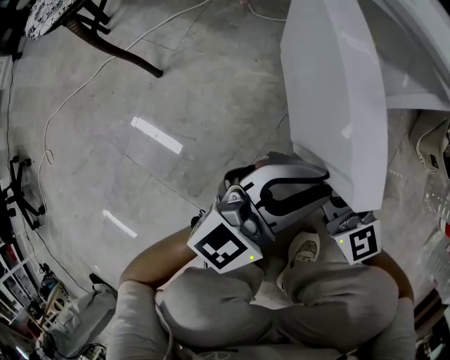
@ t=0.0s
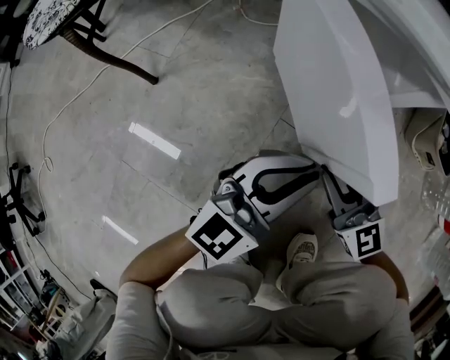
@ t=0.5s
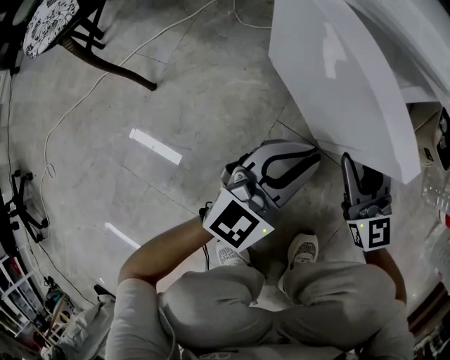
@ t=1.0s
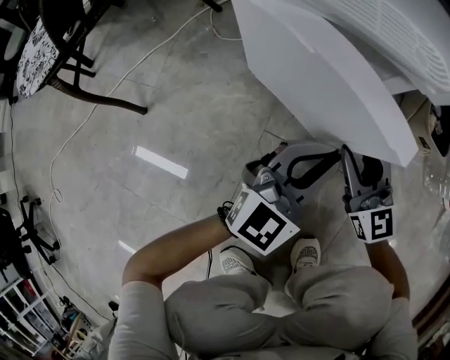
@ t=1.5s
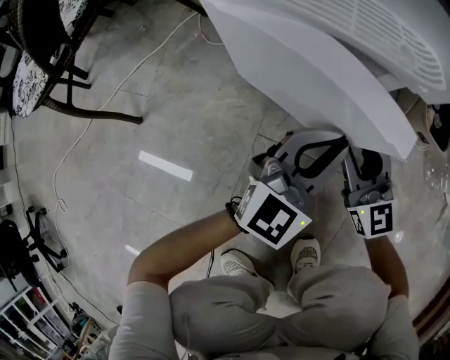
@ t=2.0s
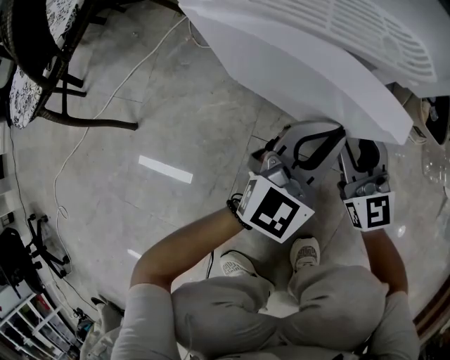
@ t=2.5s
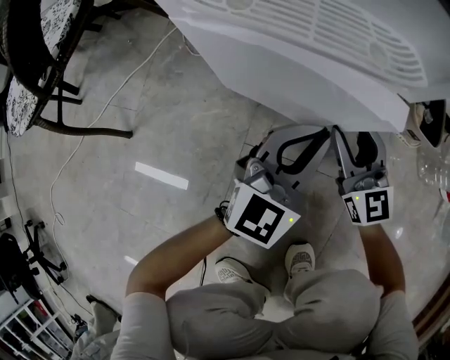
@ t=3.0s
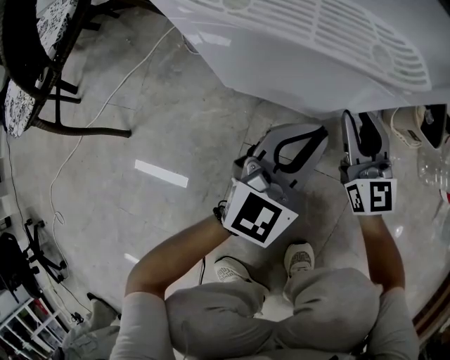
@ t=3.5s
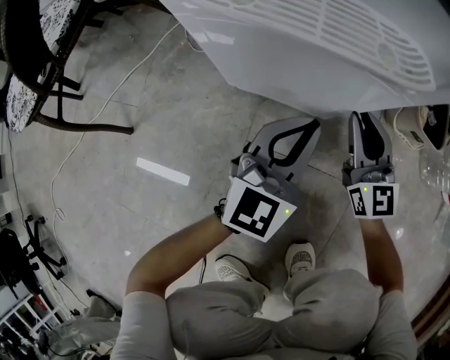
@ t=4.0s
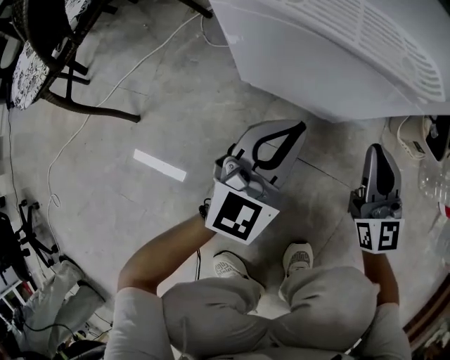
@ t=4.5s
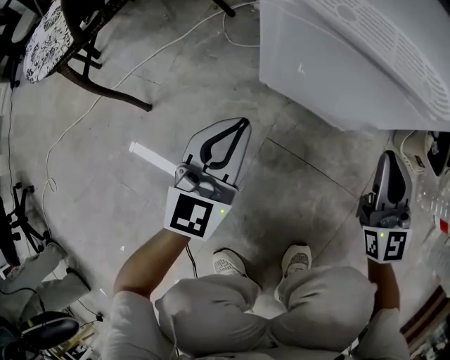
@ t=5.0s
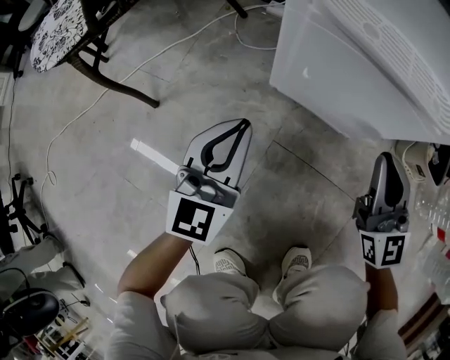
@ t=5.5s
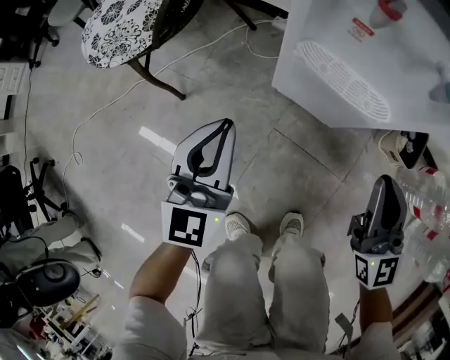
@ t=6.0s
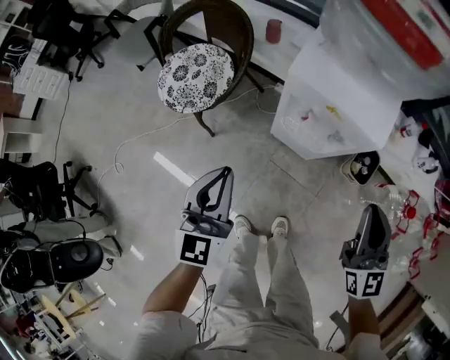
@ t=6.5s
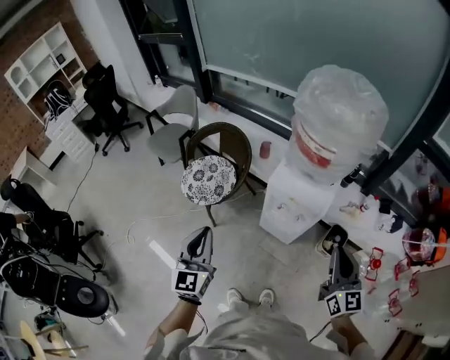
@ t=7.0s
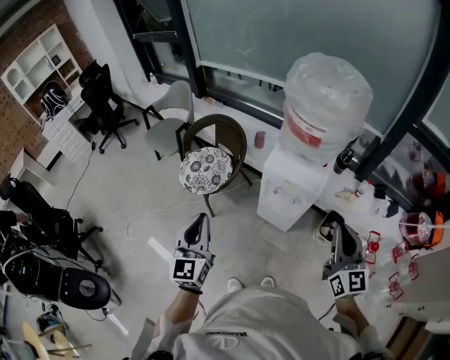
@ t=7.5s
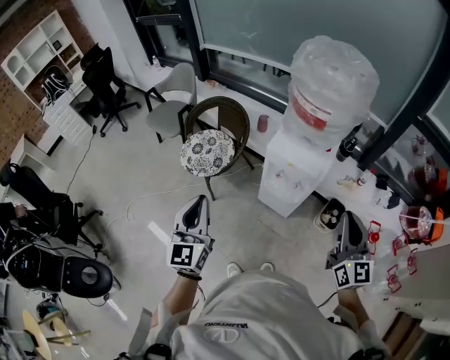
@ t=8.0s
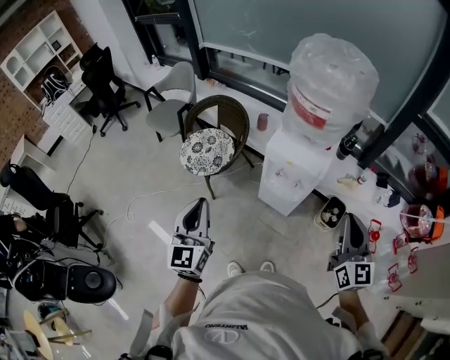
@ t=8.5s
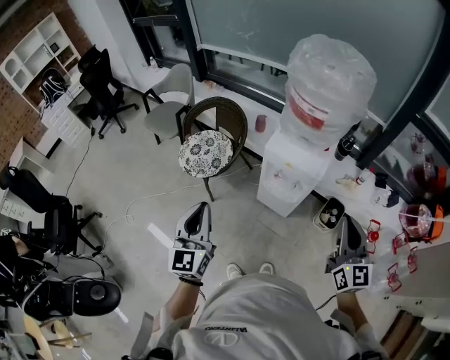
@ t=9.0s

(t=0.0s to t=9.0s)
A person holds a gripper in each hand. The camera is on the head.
t=0.0s - t=2.0s: The left gripper shifts some 15 cm forward and to the right. The right gripper heads to the right and forward, covering approximately 15 cm, and swivels roughly 20 degrees.
t=2.0s - t=4.5s: The left gripper shifts about 5 cm to the left; the right gripper shifts by roughly 5 cm, and closes.
t=4.5s - t=7.0s: The grippers both shift upward by roughly 80 cm. The left gripper rotates roughly 40 degrees.
t=7.0s - t=9.0s: The left gripper travels backward by about 5 cm, while the right gripper moves roughly 5 cm.

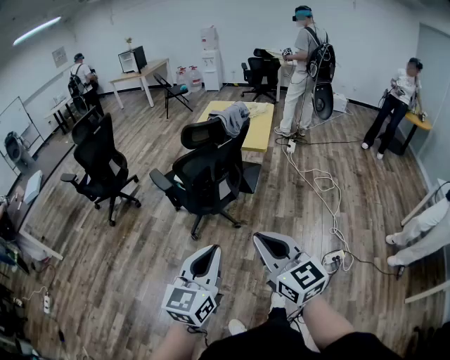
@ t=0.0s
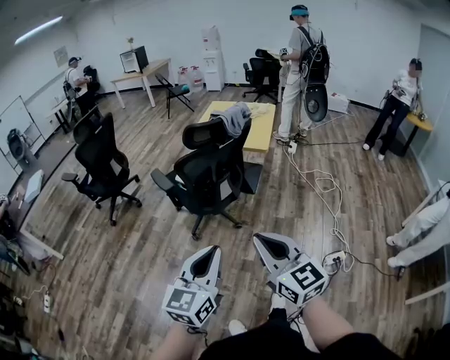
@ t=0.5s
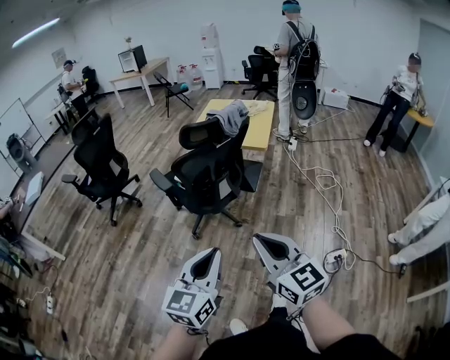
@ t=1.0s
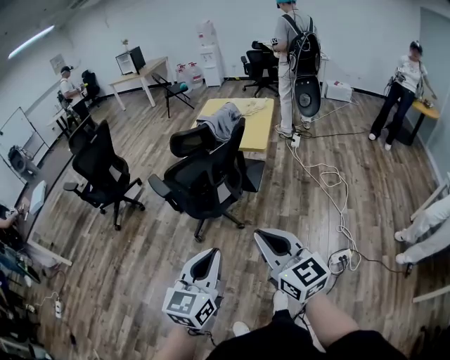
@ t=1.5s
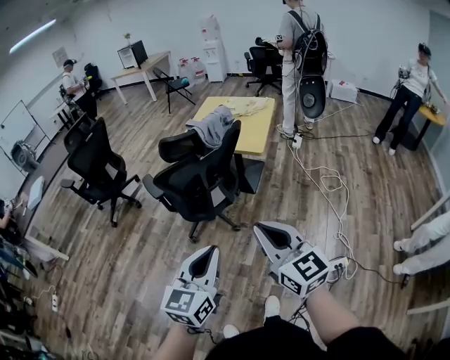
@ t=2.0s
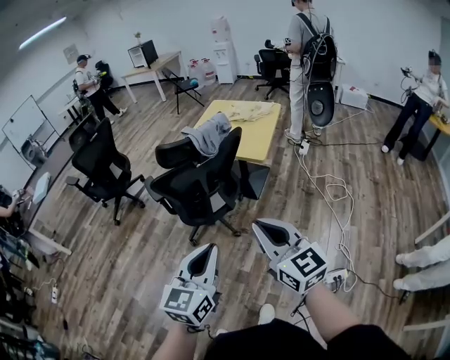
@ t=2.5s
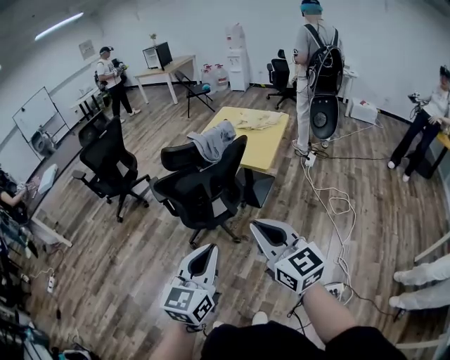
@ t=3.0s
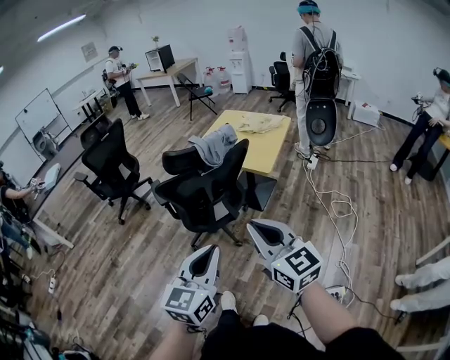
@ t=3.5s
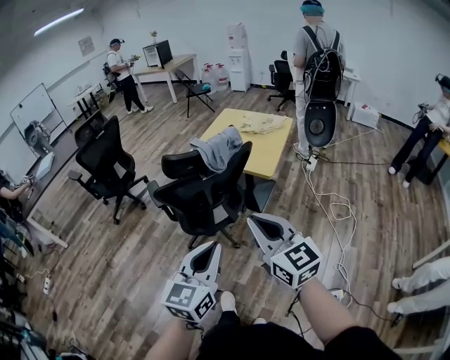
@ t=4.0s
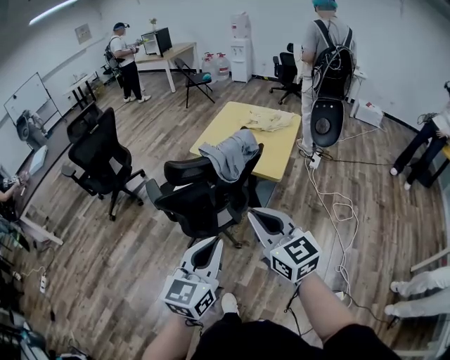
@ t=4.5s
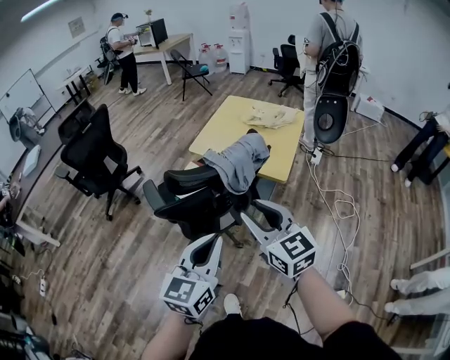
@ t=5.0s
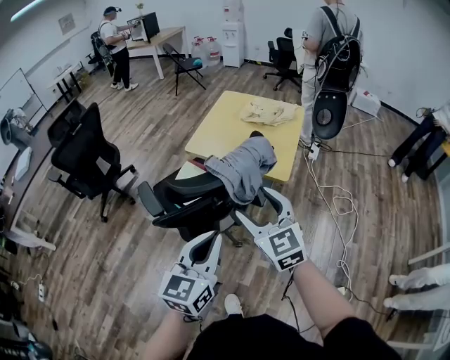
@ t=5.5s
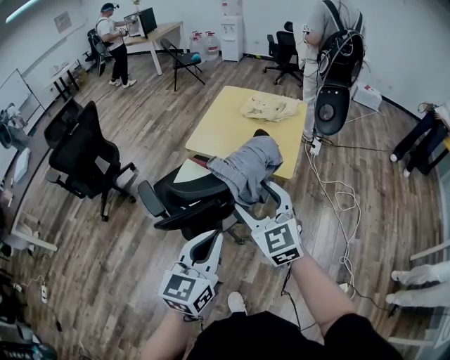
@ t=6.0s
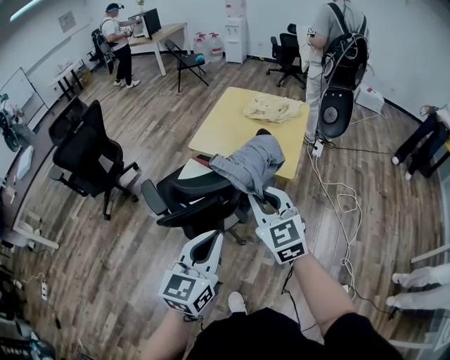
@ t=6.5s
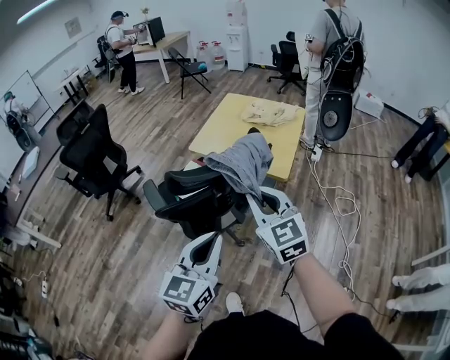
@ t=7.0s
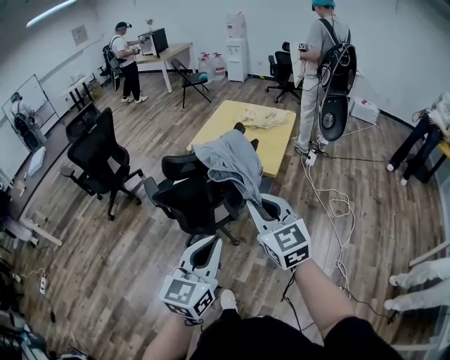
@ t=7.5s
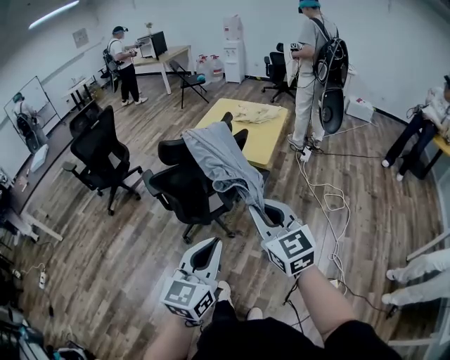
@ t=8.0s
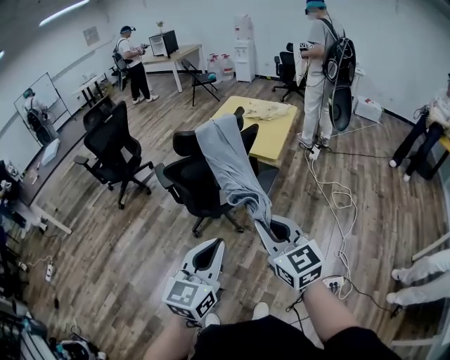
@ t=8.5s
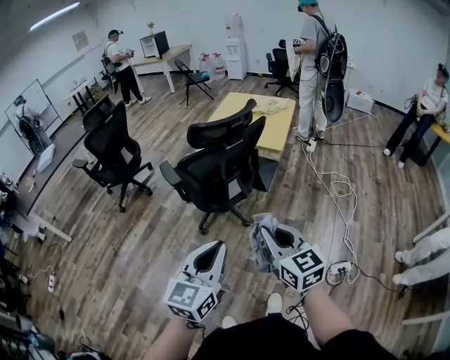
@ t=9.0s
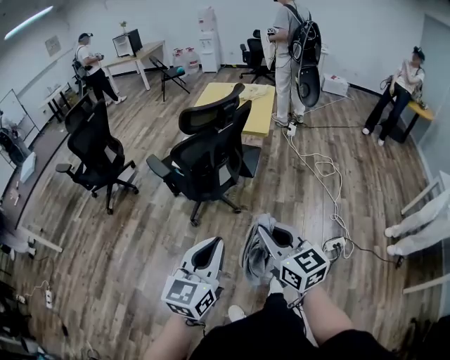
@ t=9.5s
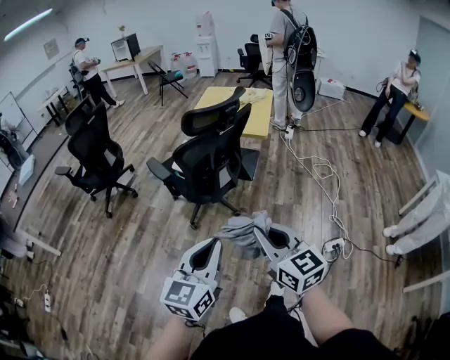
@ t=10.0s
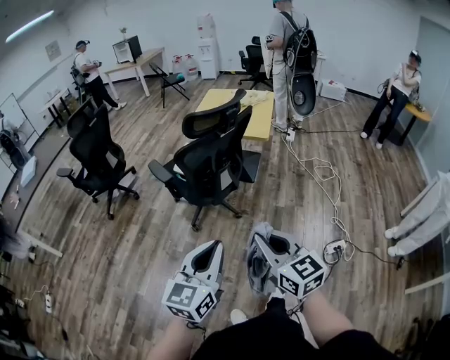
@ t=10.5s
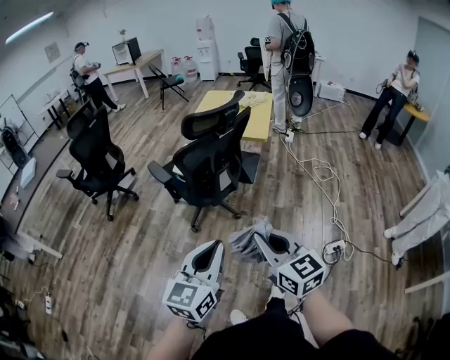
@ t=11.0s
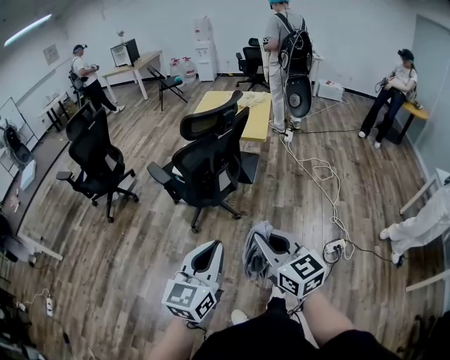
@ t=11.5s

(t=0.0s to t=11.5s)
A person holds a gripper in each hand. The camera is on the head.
t=0.0s - t=2.0s: The right gripper moves forward and to the right, about 20 cm; the left gripper is displaced to the right and forward by some 15 cm.
t=2.0s - t=4.0s: The left gripper heads forward and to the right, covering some 10 cm; the right gripper is displaced forward by approximately 10 cm.
t=4.0s - t=6.0s: The two grippers go some 25 cm forward. The right gripper rotates approximately 20 degrees, and opens its fingers.
t=6.0s - t=7.5s: Both grippers travel together backward and to the right, approximately 20 cm. The right gripper closes its fingers.
t=7.5s - t=9.5s: The right gripper travels backward by roughly 30 cm. The left gripper is displaced backward and to the left by about 30 cm.
t=9.5s - t=11.5s: The grippers move only a little.

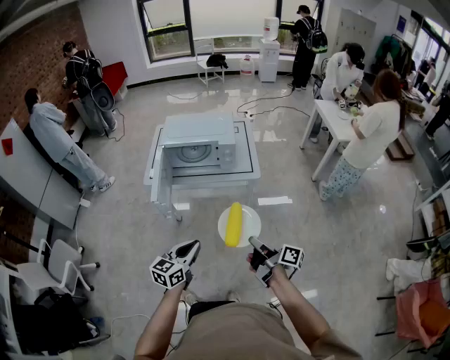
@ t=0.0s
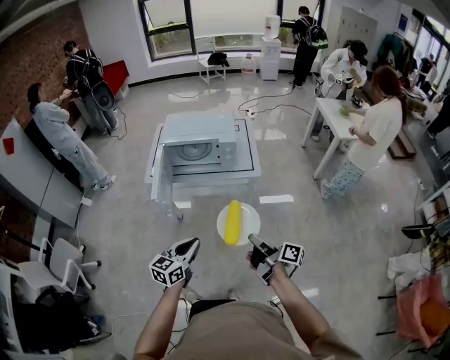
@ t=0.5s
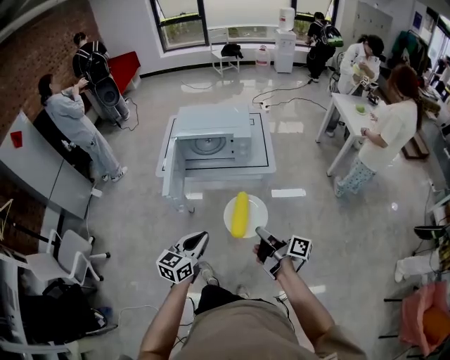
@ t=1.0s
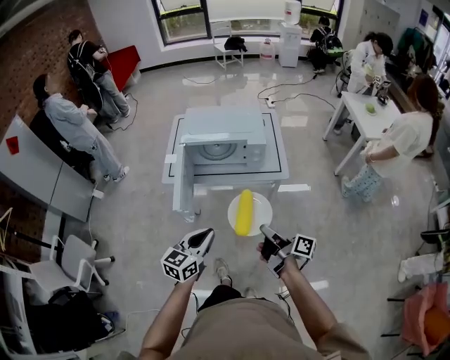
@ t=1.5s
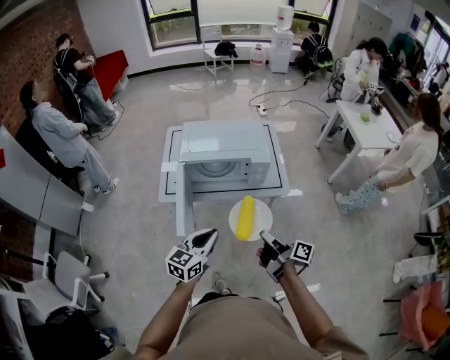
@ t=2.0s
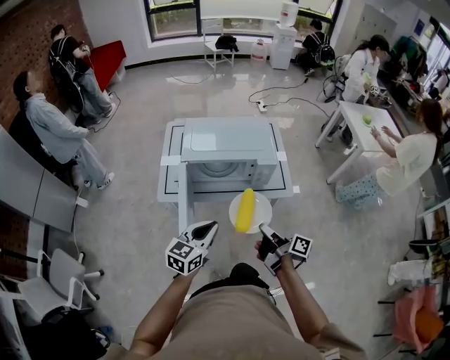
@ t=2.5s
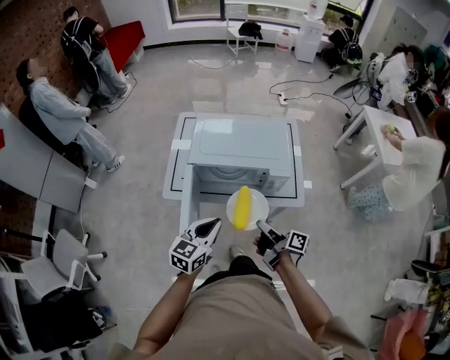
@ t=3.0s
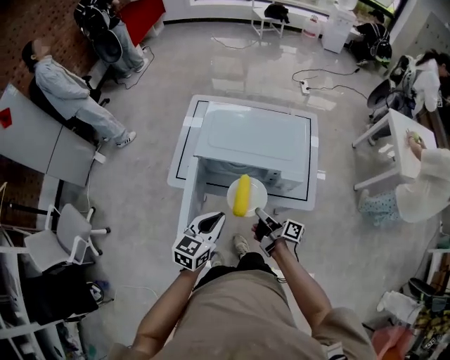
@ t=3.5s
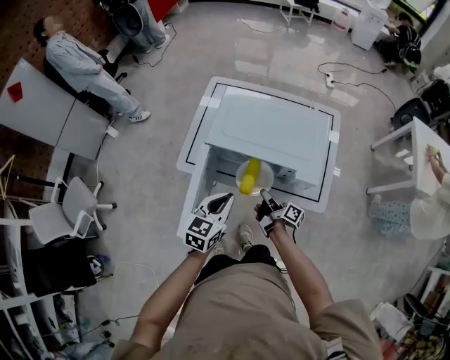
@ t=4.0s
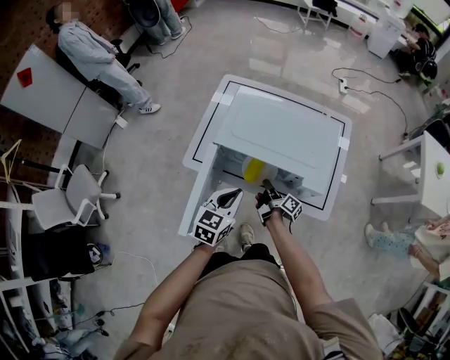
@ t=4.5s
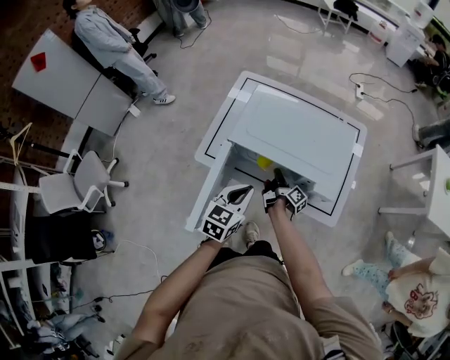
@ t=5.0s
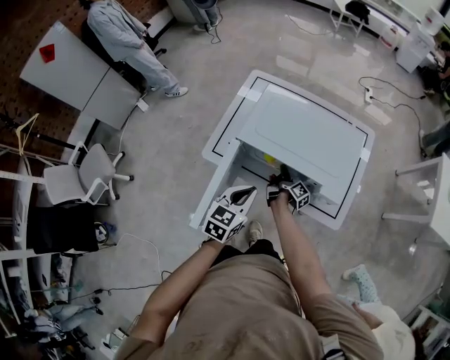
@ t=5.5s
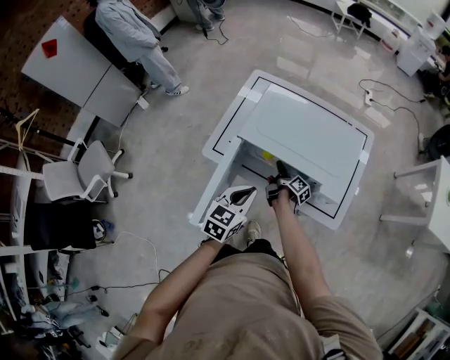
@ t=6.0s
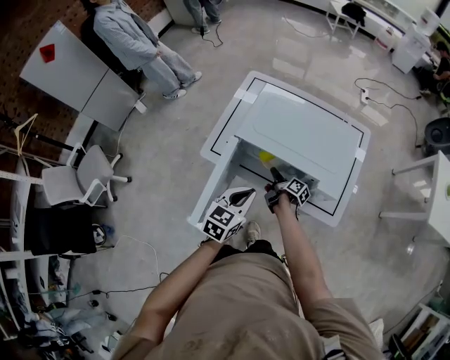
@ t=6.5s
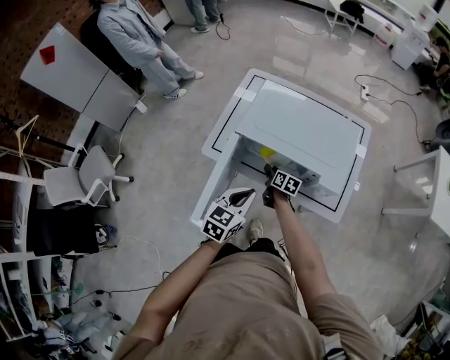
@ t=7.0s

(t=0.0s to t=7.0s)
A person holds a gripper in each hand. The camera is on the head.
t=0.0s - t=2.0s: The left gripper moves forward, roughly 20 cm; the right gripper moves forward and to the left, approximately 20 cm.
t=2.0s - t=3.5s: The left gripper is displaced forward by approximately 15 cm, while the right gripper heads forward and downward, covering about 25 cm.
t=3.5s - t=5.0s: The right gripper travels forward and downward by approximately 20 cm. The left gripper travels forward and downward by approximately 10 cm.
t=5.0s - t=7.0s: The right gripper ends up some 5 cm from where it was, rotates around the line of its fingers by roughly 40 degrees, counterclockwise from behind, and opens up.
